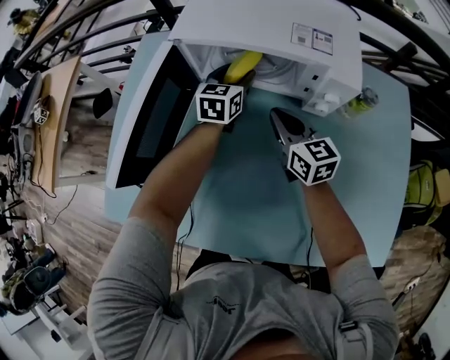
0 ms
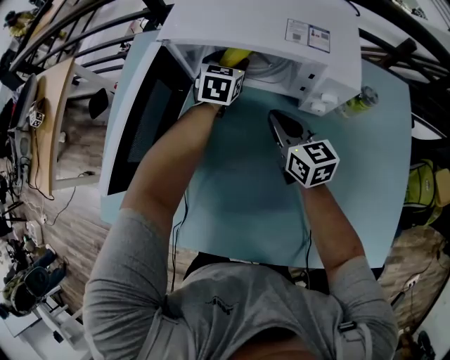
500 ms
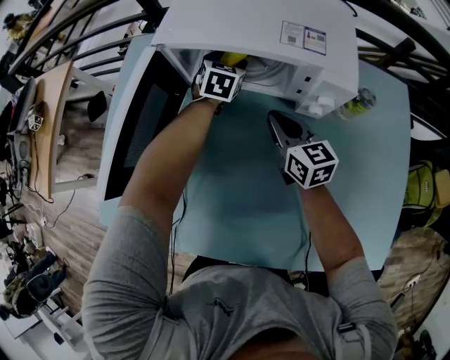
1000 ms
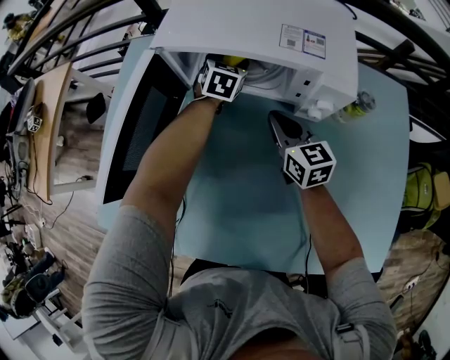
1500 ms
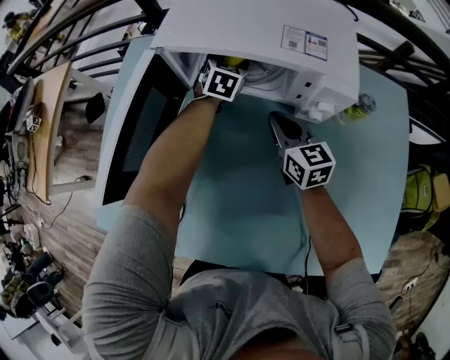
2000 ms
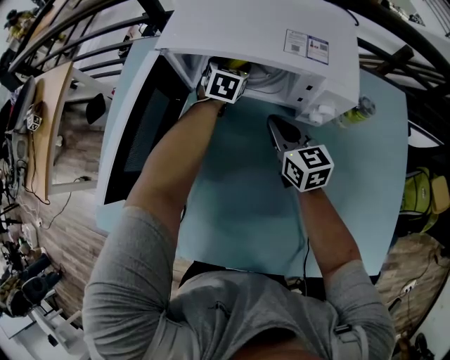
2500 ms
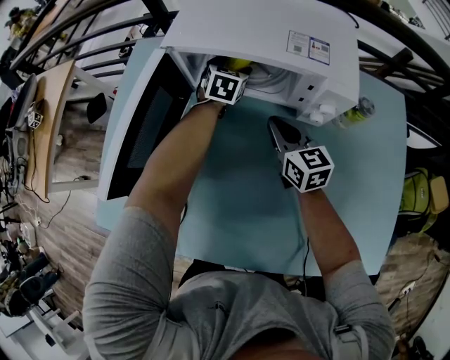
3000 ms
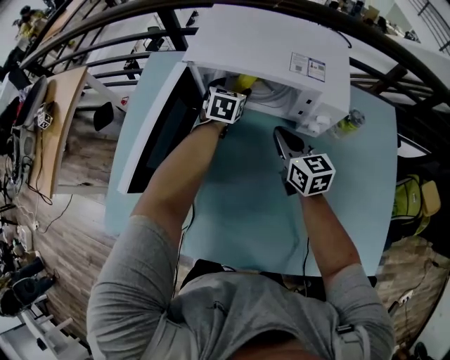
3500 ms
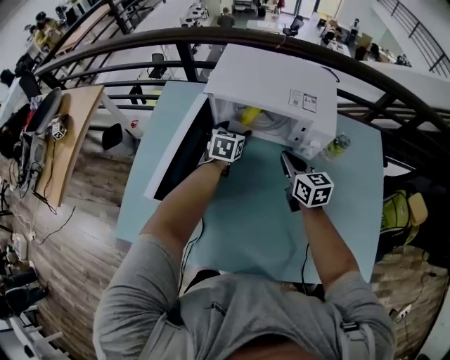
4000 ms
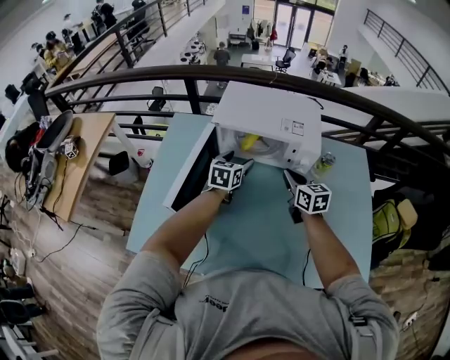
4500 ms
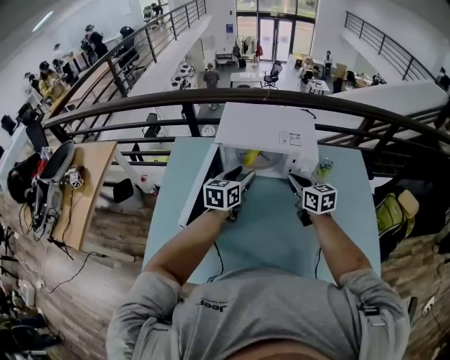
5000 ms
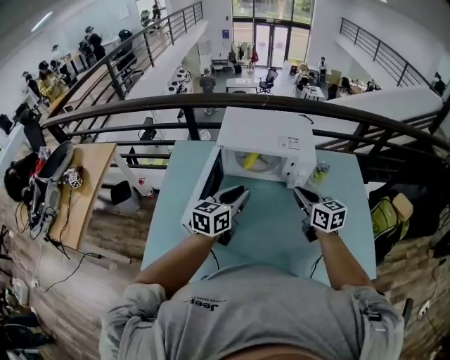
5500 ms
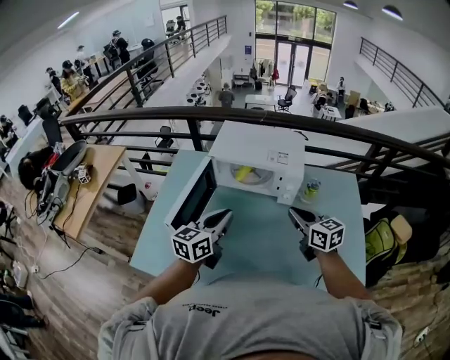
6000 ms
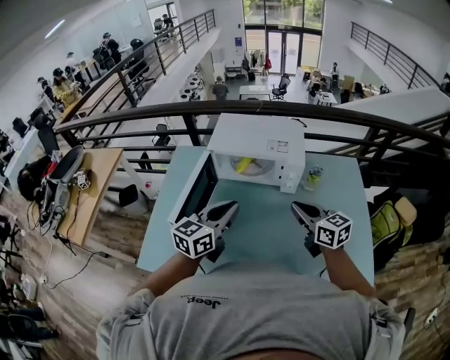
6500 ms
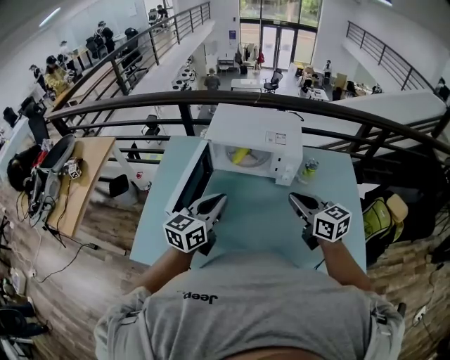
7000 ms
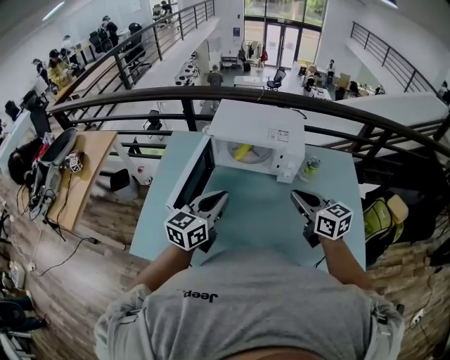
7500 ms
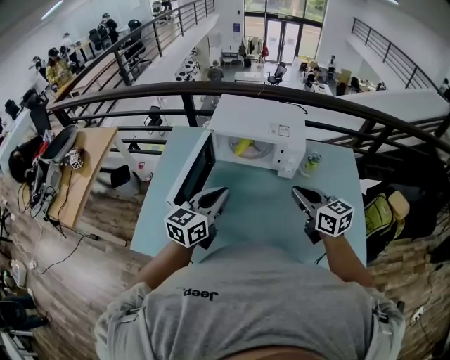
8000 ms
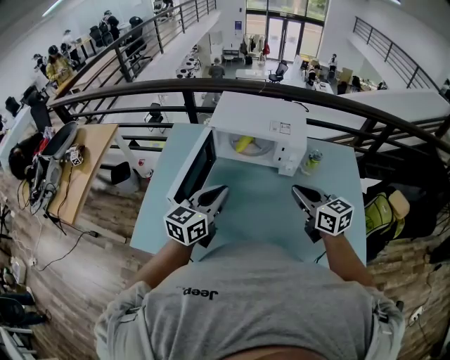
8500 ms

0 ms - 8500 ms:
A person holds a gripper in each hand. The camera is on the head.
0 ms - 2000 ms: The left gripper heads forward, covering approximately 10 cm, and rotates roughly 20 degrees.
2000 ms - 4000 ms: The right gripper goes approximately 5 cm upward; the left gripper moves backward, to the left and upward, approximately 15 cm.
4000 ms - 6500 ms: The left gripper shifts about 35 cm backward and upward, swivels about 30 degrees, and closes its fingers, while the right gripper shifts some 20 cm upward and backward.
6500 ms - 8500 ms: The grippers move only a little.

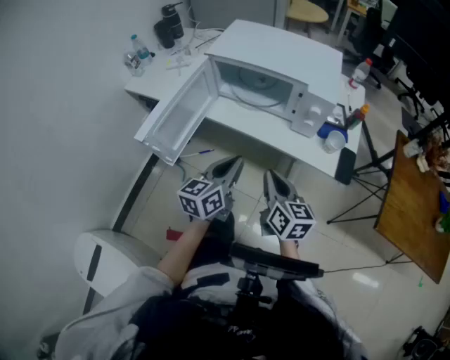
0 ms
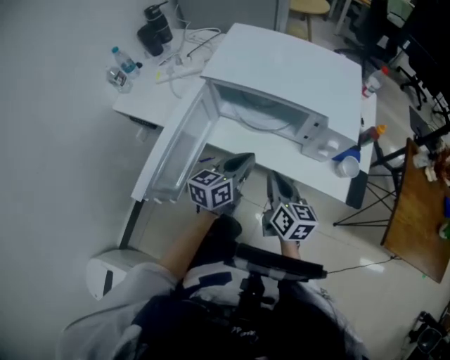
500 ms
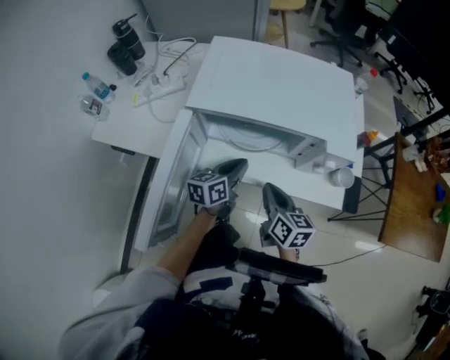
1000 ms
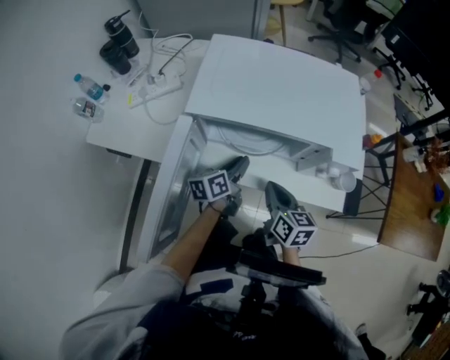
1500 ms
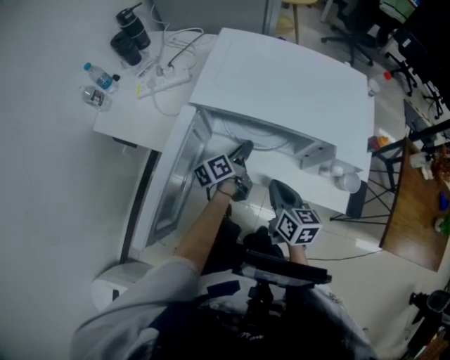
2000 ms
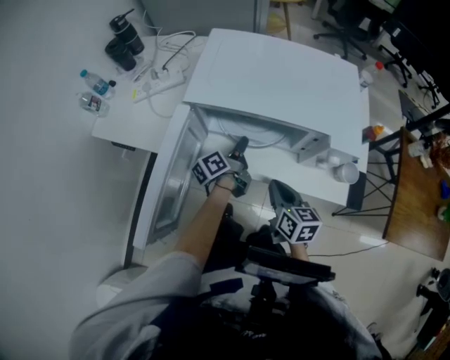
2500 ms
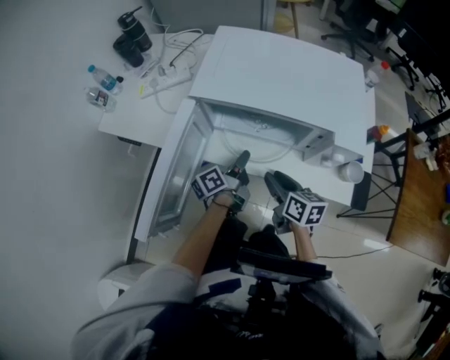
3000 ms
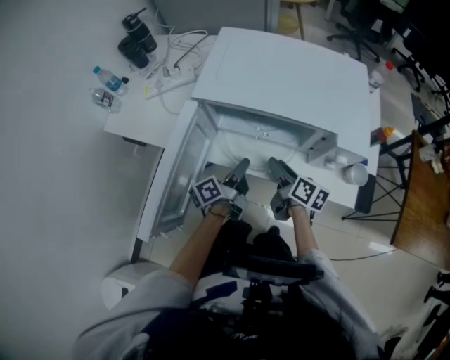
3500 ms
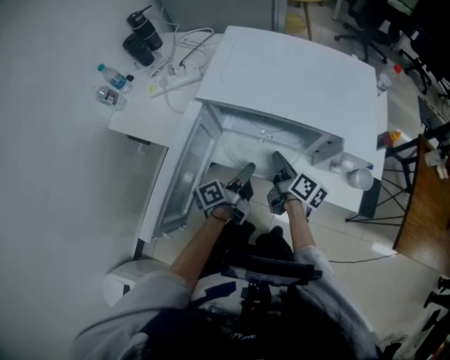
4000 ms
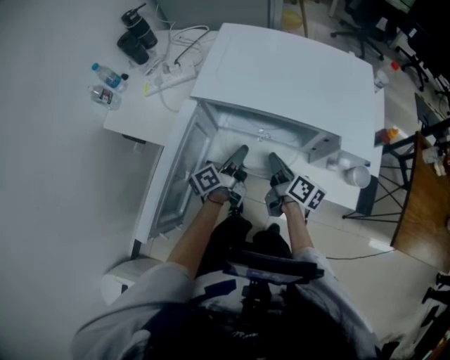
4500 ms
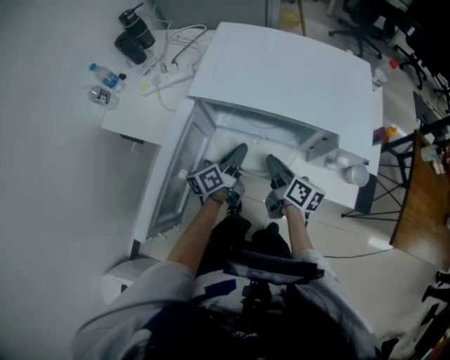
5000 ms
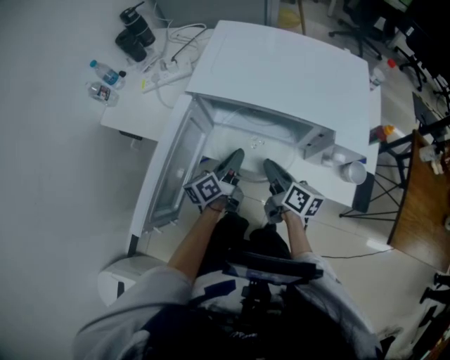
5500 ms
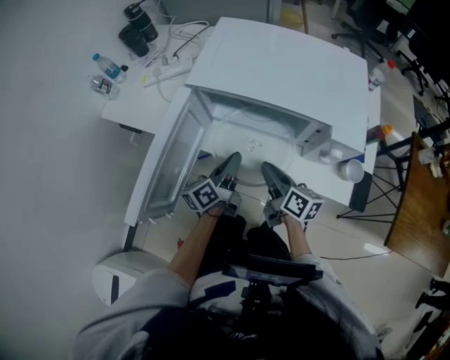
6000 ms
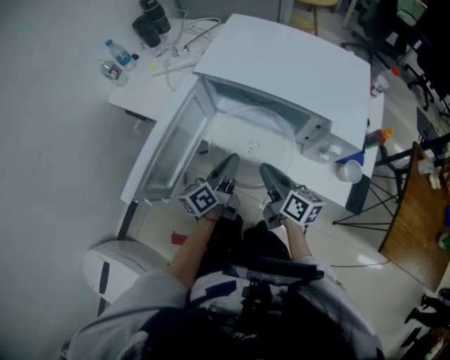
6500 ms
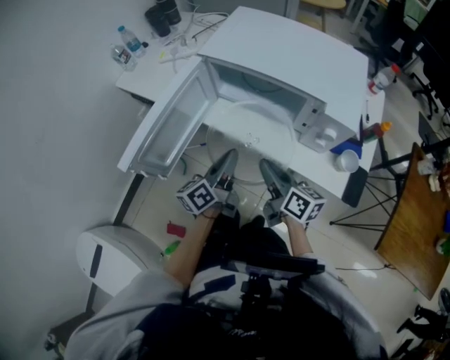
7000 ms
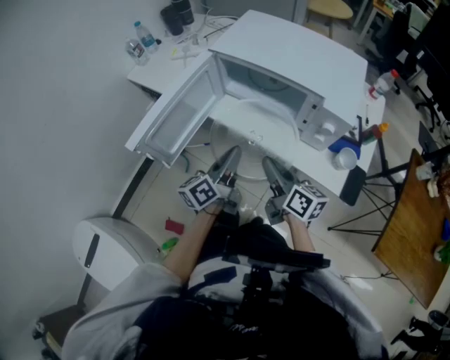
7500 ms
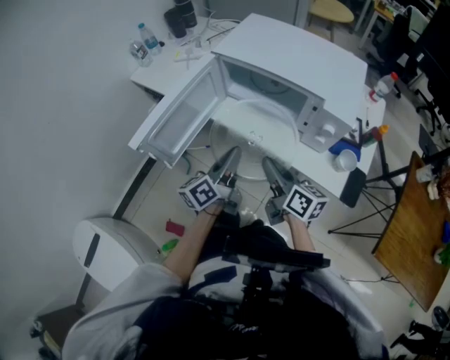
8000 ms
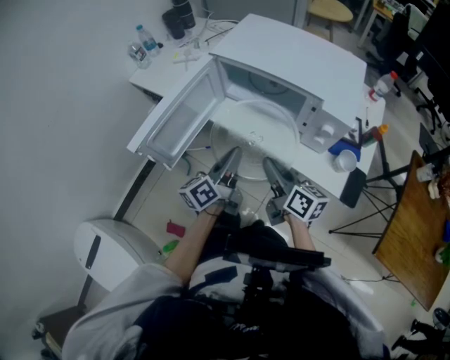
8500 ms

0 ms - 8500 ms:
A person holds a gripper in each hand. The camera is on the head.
0 ms - 2000 ms: The right gripper moves forward, roughly 20 cm. The left gripper shifts about 35 cm forward and downward, rotates around the line of its fingers by roughly 40 degrees, counterclockwise from behind, and opens up.
2000 ms - 4000 ms: The right gripper is displaced forward by some 10 cm, swivels roughly 30 degrees, and opens, then closes again, while the left gripper travels backward by roughly 10 cm.
4000 ms - 6500 ms: The right gripper shifts some 10 cm backward, and changes its angle by roughly 20 degrees. Meanwhile the left gripper shifts some 5 cm backward, and rotates about 30 degrees.
6500 ms - 8500 ms: The grippers both shift backward by approximately 10 cm.

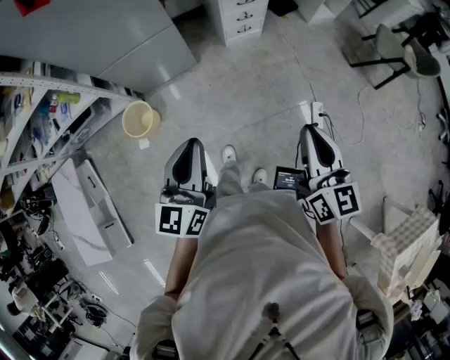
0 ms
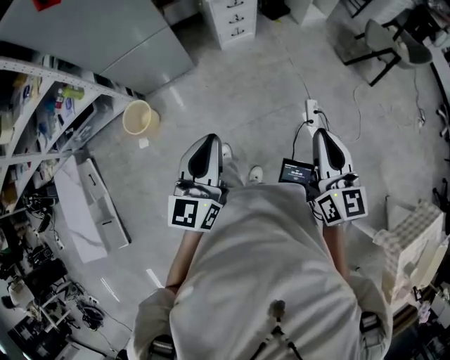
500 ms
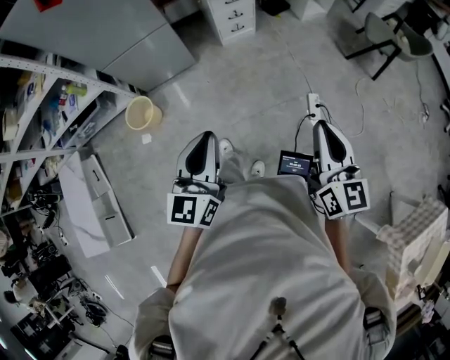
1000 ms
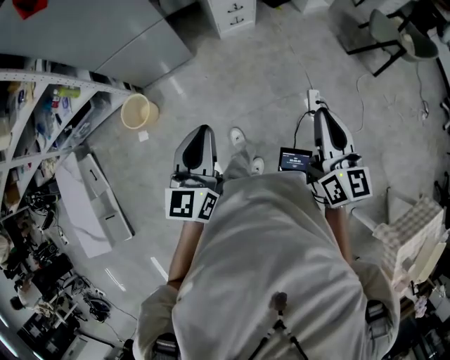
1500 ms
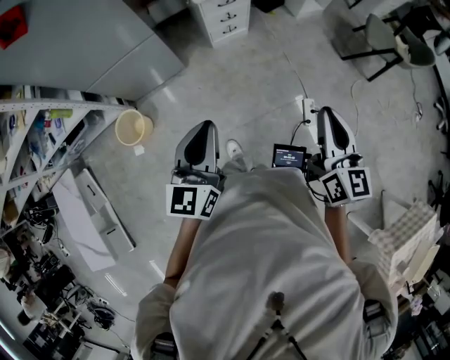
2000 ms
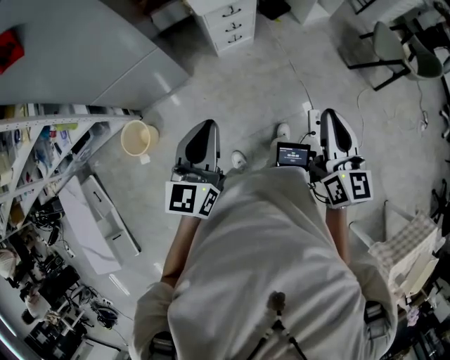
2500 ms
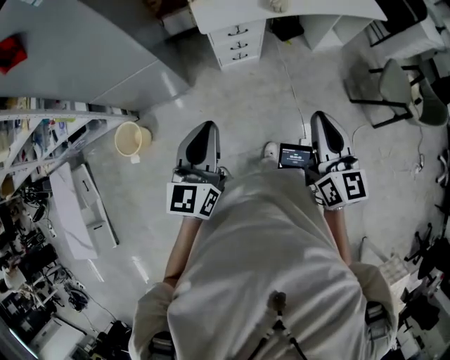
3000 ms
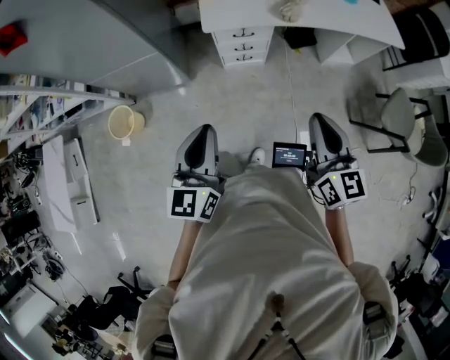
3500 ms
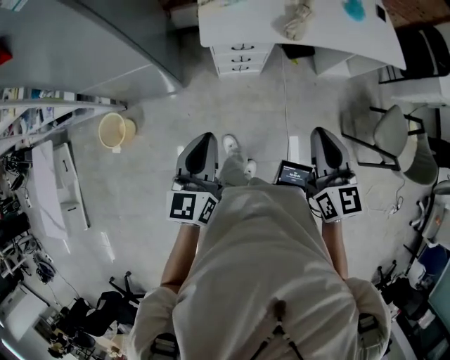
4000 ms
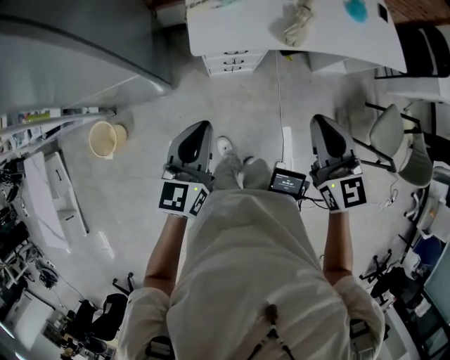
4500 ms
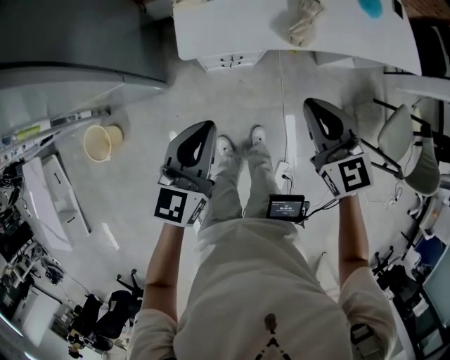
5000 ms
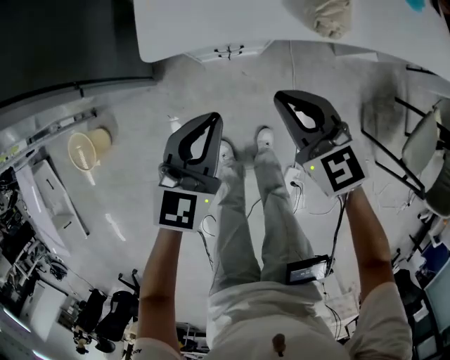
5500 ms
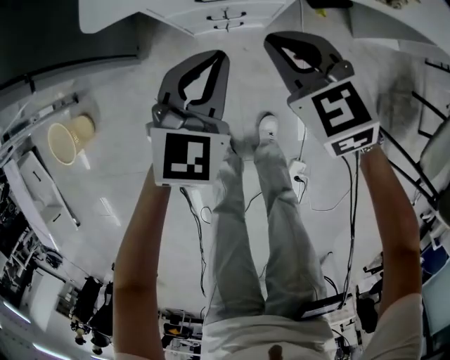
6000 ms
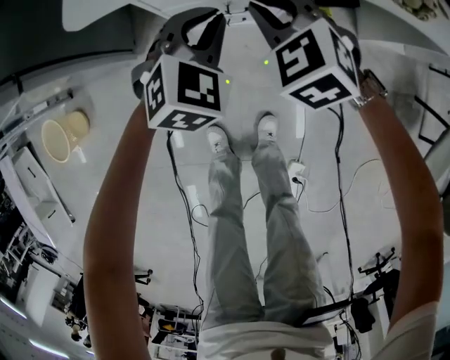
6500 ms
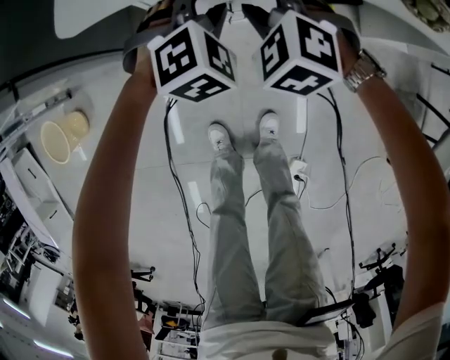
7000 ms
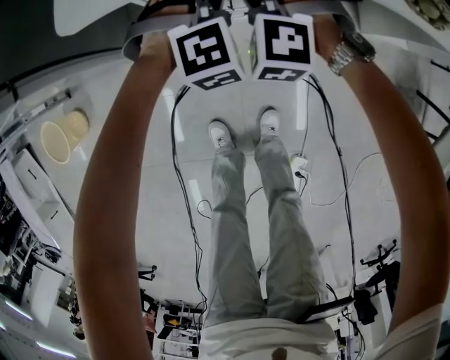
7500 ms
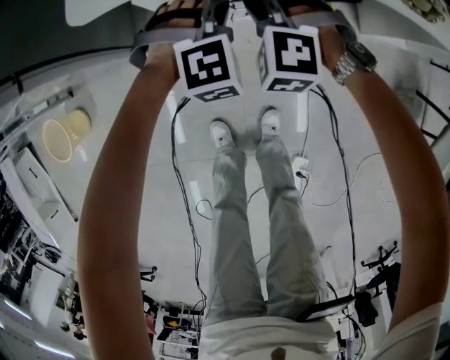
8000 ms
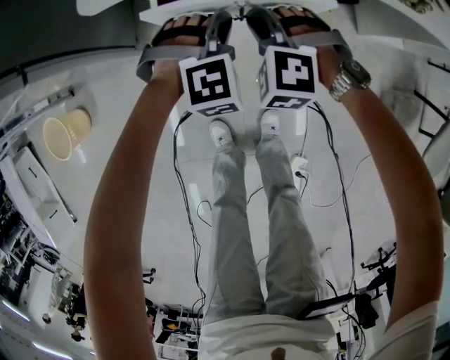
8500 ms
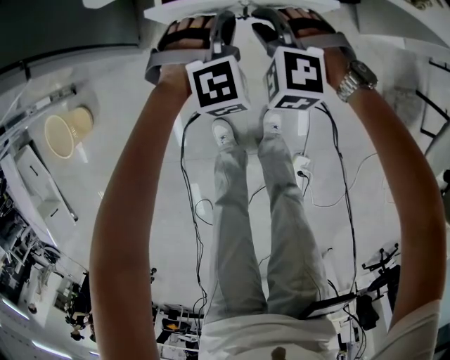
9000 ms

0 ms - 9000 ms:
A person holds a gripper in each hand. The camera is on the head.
0 ms - 2000 ms: The grippers both shift to the right by approximately 10 cm. The right gripper reaches approximately 15 cm backward, then returns. The left gripper moves about 15 cm backward and comes back.
2000 ms - 4500 ms: The pair of grippers is taken forward, some 50 cm. The right gripper changes its angle by some 40 degrees.
4500 ms - 7000 ms: Both grippers move downward and forward, about 60 cm. The left gripper rotates around the line of its fingers by roughly 60 degrees, clockwise from behind, and opens its fingers. The right gripper twists approximately 50 degrees counterclockwise, seen from behind, and opens up.
7000 ms - 9000 ms: The grippers both shift backward by some 5 cm. The left gripper closes its fingers.
